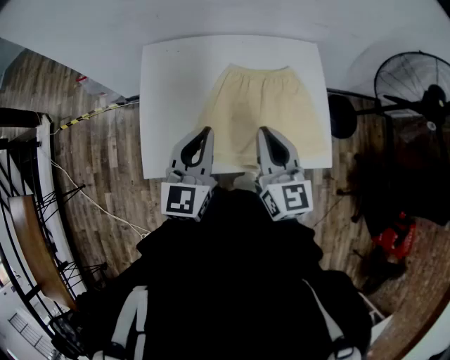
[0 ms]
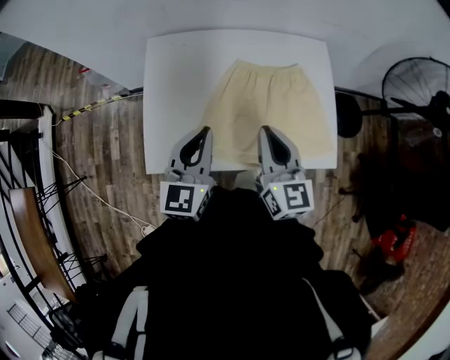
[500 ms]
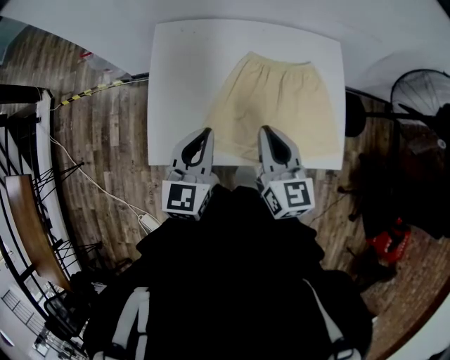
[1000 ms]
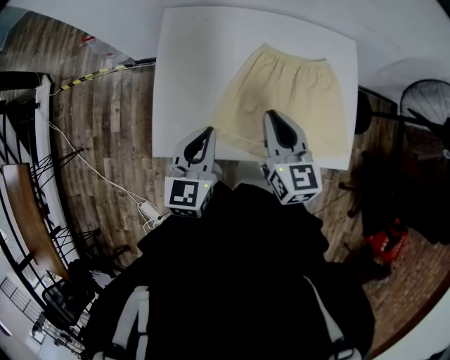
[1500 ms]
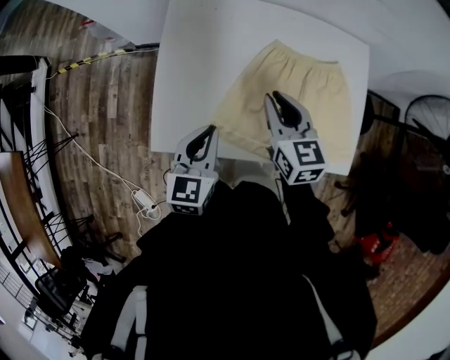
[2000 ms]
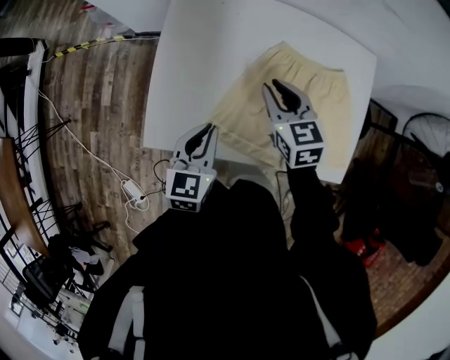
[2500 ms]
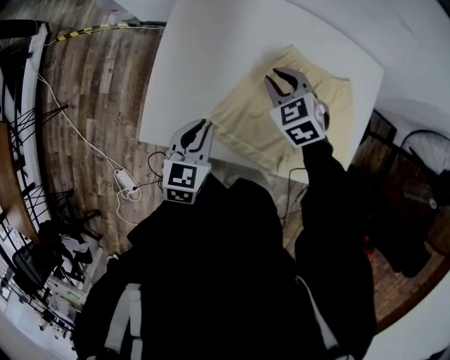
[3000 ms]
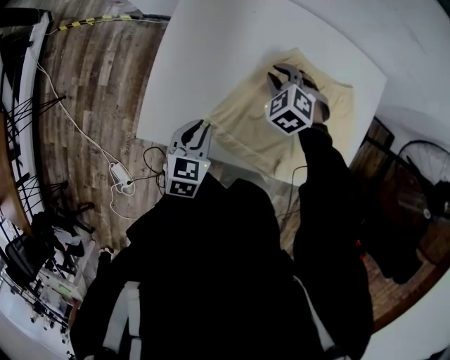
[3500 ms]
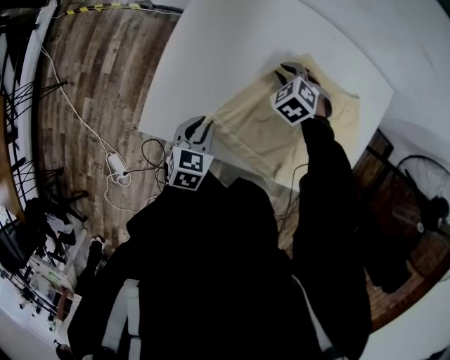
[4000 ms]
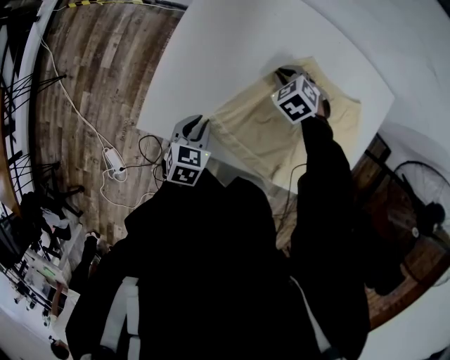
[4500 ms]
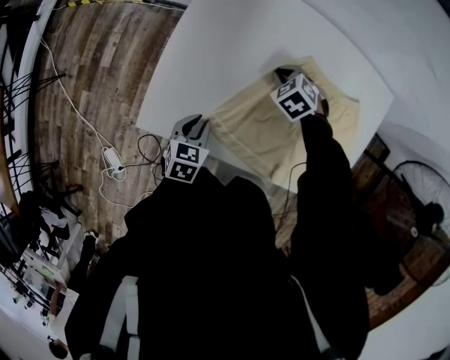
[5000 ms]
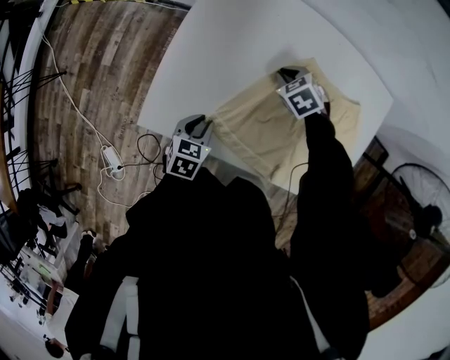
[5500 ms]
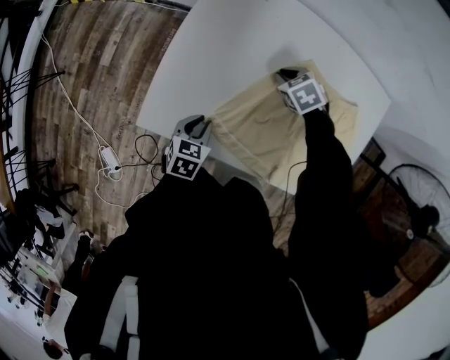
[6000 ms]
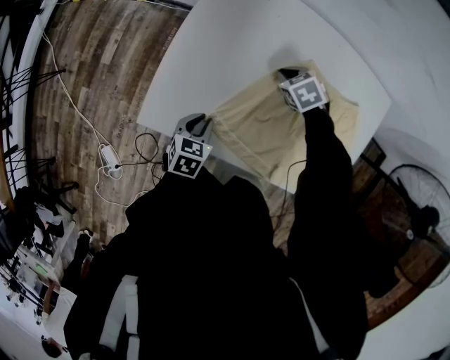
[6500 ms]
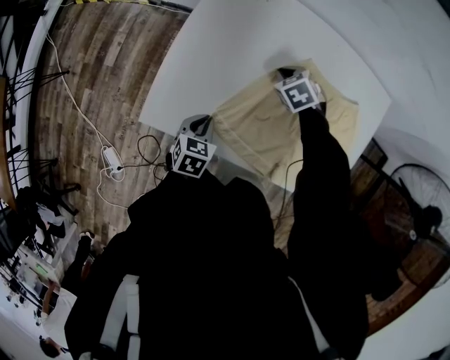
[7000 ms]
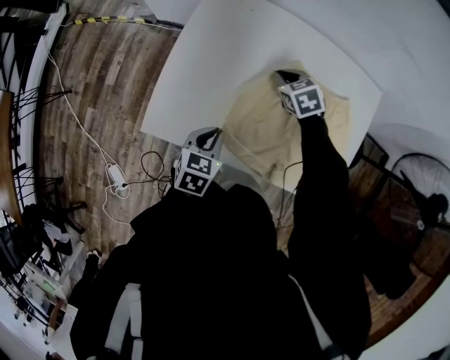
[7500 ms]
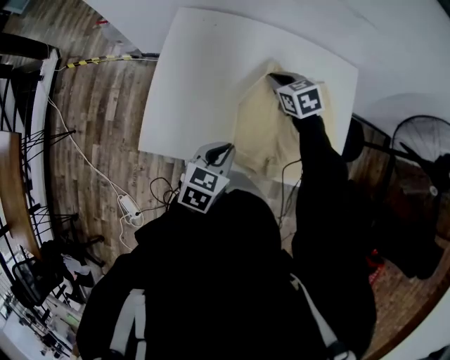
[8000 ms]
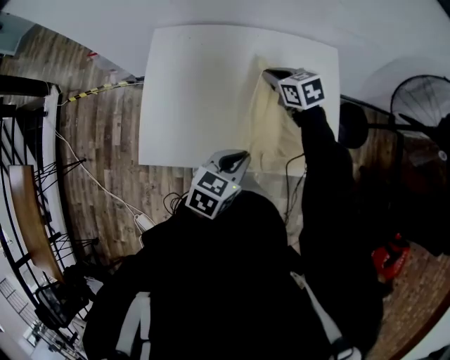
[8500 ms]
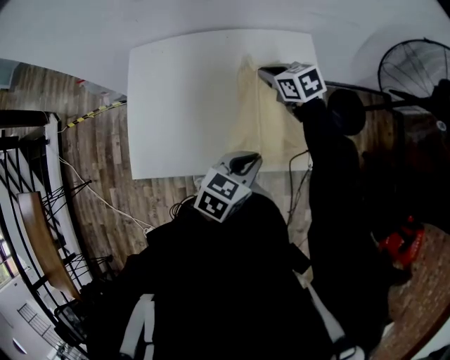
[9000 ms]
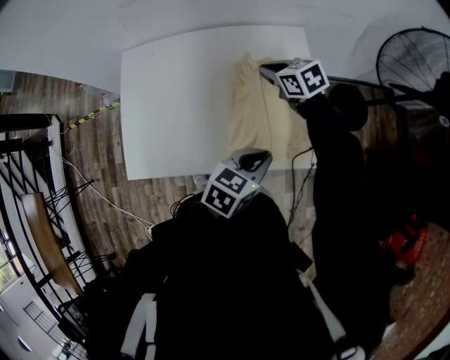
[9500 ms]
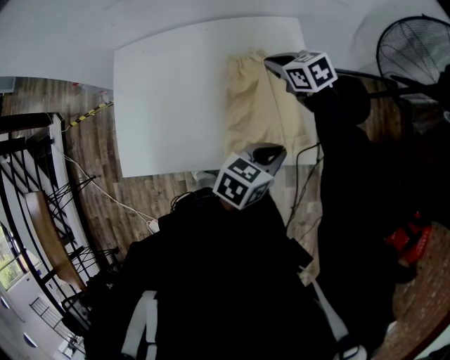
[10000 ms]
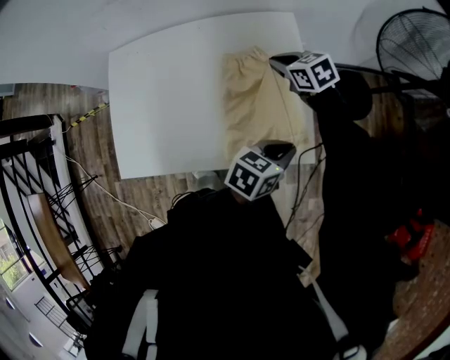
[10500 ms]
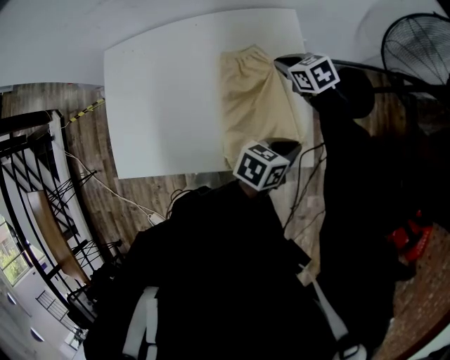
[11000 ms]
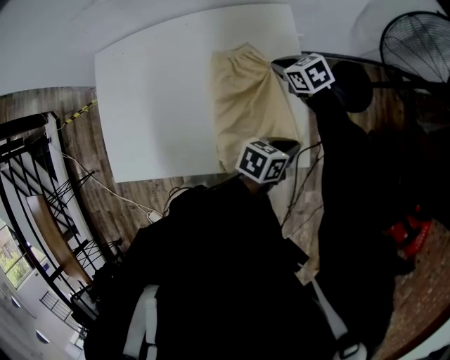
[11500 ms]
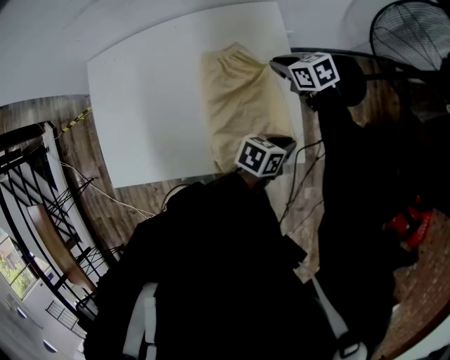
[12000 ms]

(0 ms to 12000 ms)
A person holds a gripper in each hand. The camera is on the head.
0 ms - 2000 ms: The right gripper heads downward, forward and to the left, covering some 15 cm, and rotates some 20 degrees. The left gripper shifts some 15 cm downward and to the left, and rotates some 20 degrees.
2000 ms - 4000 ms: The left gripper shifts approximately 15 cm downward, and turns by about 20 degrees; the right gripper shifts approximately 25 cm downward and forward, and points its fingers about 40 degrees further downward.
4000 ms - 6000 ms: The right gripper turns by about 20 degrees.
6000 ms - 8000 ms: The grippers both shift upward by approximately 15 cm. The right gripper turns by approximately 30 degrees.
8000 ms - 10000 ms: The grippers both shift to the right by roughly 30 cm. The left gripper swivels approximately 30 degrees.
10000 ms - 12000 ms: The left gripper ends up approximately 15 cm from where it was, and rotates roughly 20 degrees, while the right gripper moves approximately 15 cm.

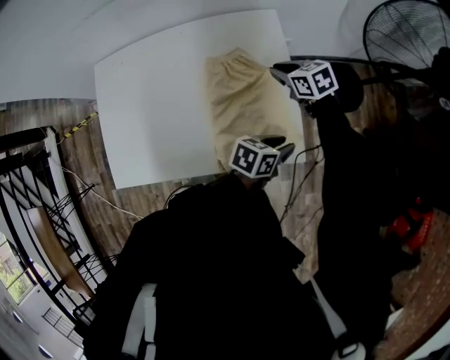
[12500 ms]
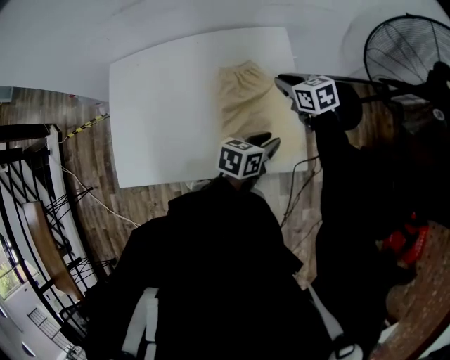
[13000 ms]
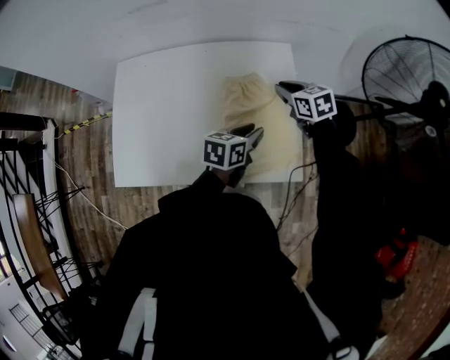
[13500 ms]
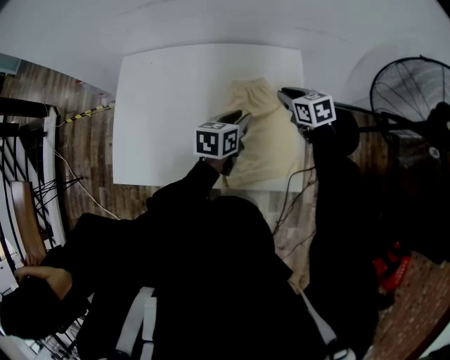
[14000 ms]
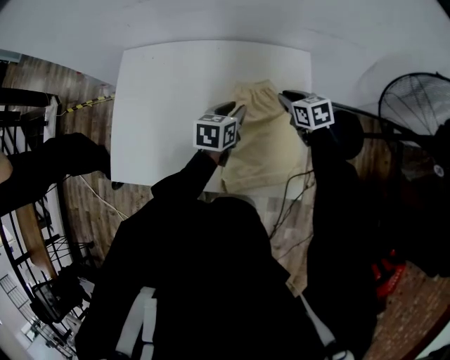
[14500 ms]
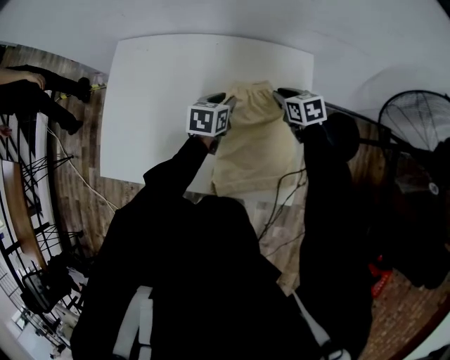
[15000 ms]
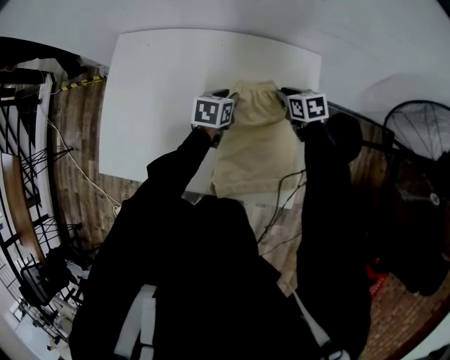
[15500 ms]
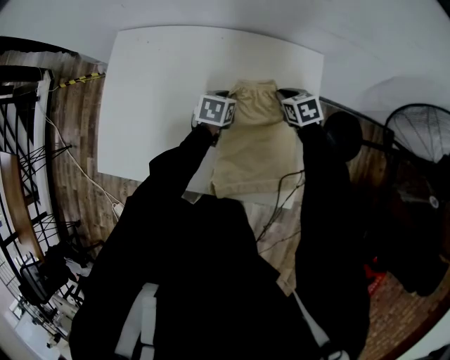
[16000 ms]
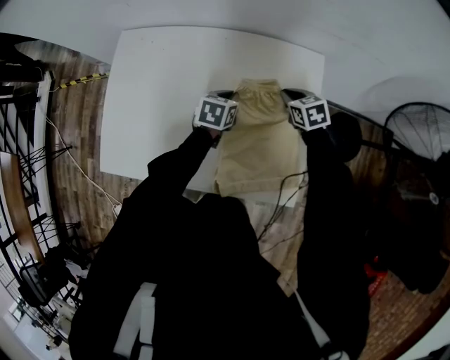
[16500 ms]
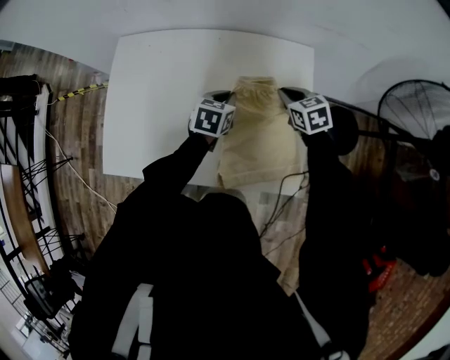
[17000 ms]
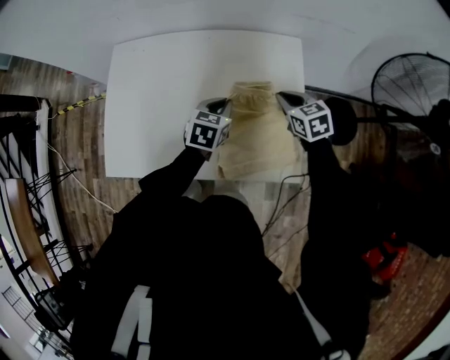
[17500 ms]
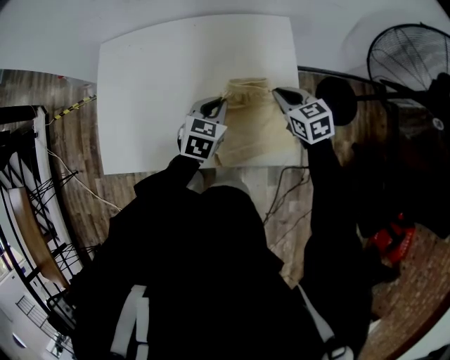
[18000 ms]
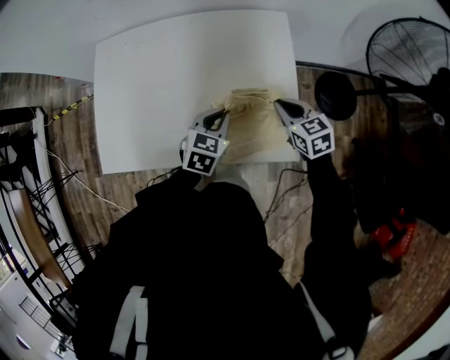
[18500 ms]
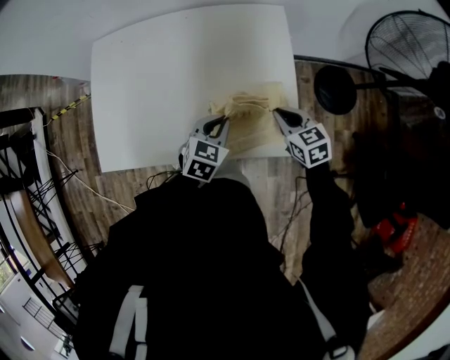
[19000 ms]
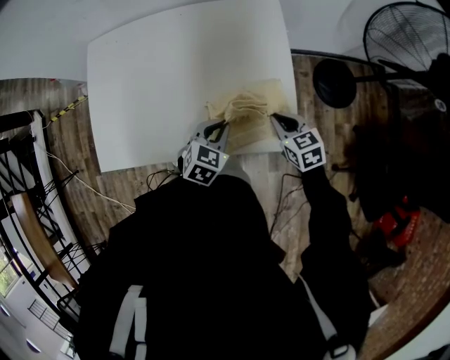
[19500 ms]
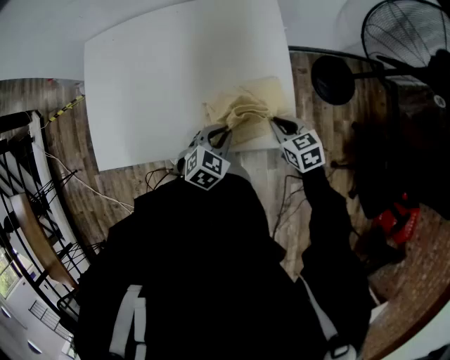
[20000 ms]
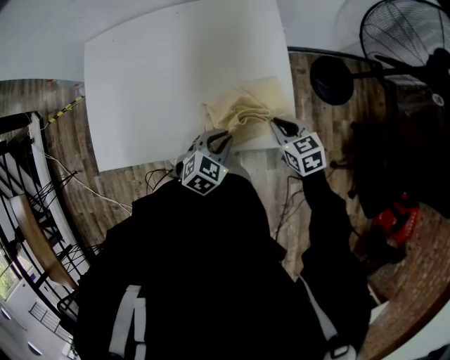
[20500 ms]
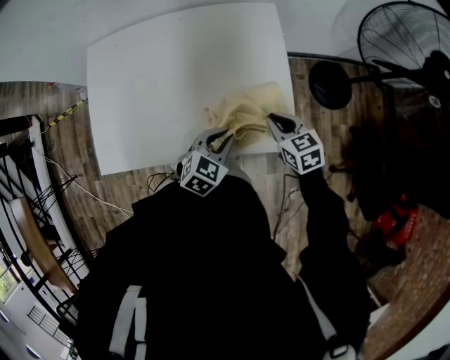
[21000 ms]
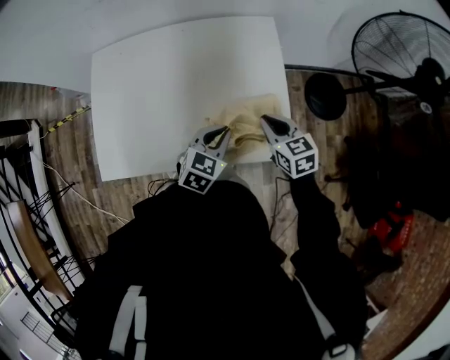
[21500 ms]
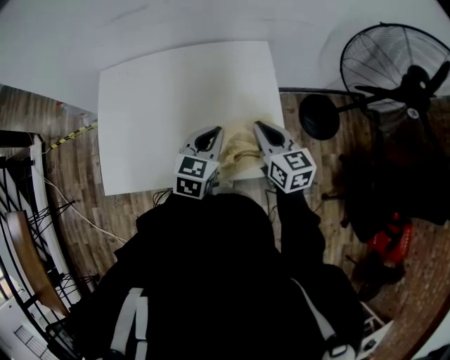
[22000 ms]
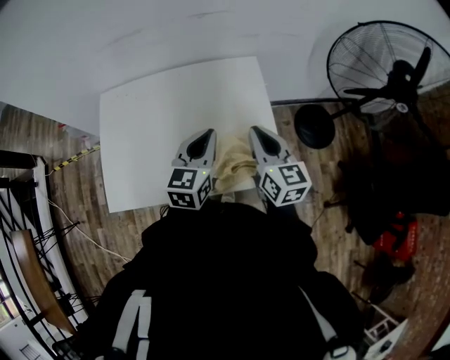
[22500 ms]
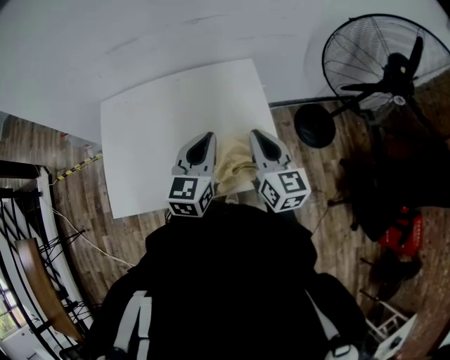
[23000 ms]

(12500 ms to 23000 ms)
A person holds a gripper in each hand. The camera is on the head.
12500 ms - 14500 ms: The left gripper ends up some 30 cm from where it was, and rotates some 40 degrees. The right gripper travels upward and back again, some 5 cm each way.
14500 ms - 16500 ms: The right gripper moves about 5 cm; the left gripper travels downward and forward by about 10 cm, and closes its fingers.
16500 ms - 19000 ms: The two grippers go some 25 cm backward. The left gripper changes its angle by roughly 30 degrees.
19000 ms - 21000 ms: The left gripper goes roughly 5 cm backward.
21000 ms - 23000 ms: Both grippers travel together upward, roughly 20 cm. The right gripper tips its fingers upward by about 30 degrees. Meanwhile the left gripper rotates some 40 degrees.

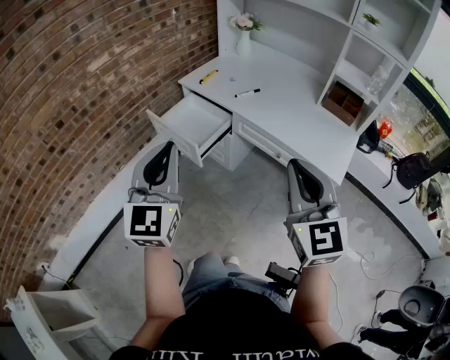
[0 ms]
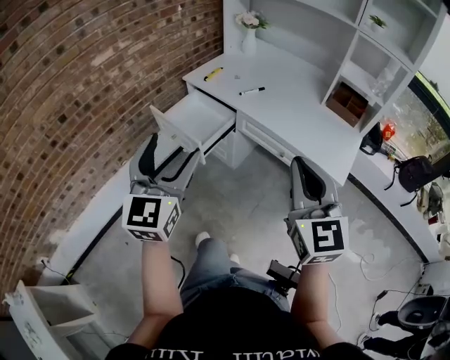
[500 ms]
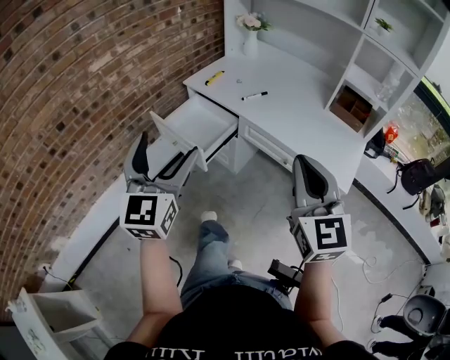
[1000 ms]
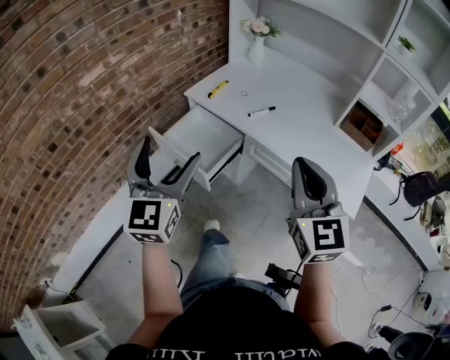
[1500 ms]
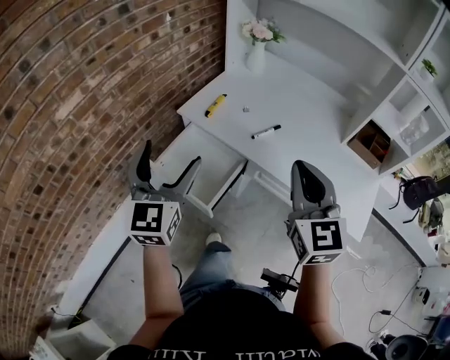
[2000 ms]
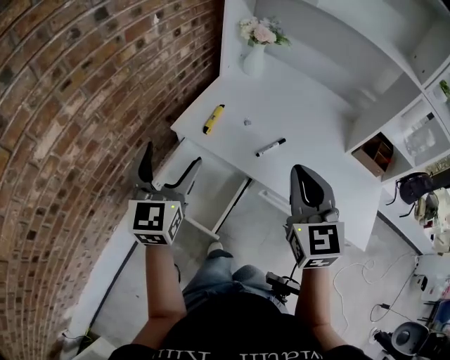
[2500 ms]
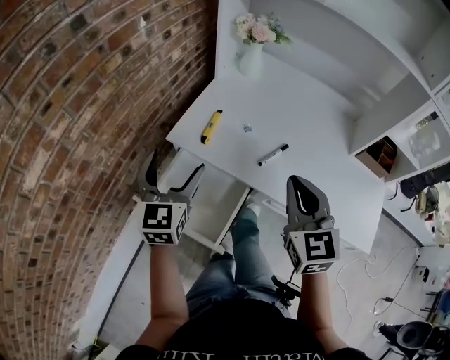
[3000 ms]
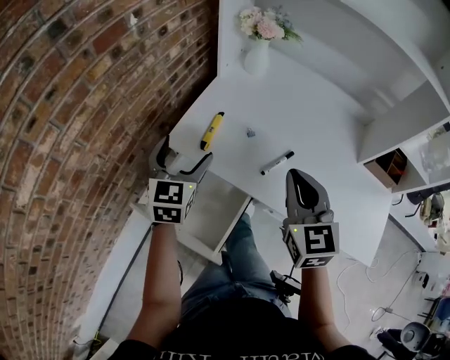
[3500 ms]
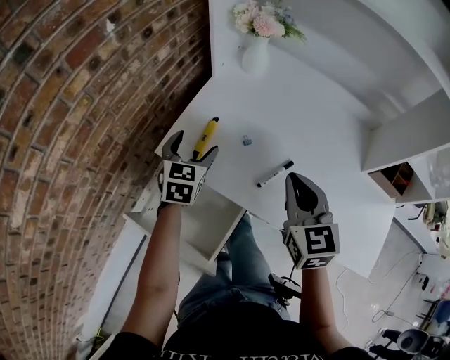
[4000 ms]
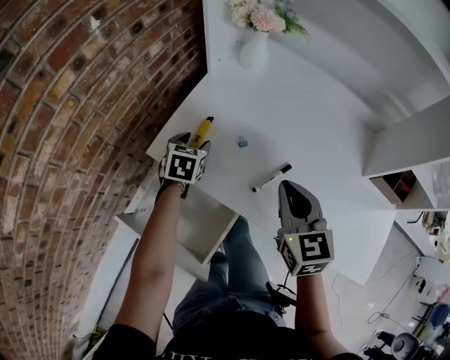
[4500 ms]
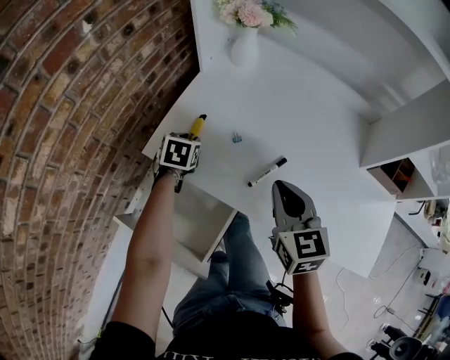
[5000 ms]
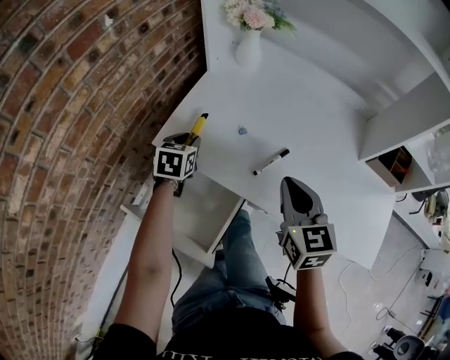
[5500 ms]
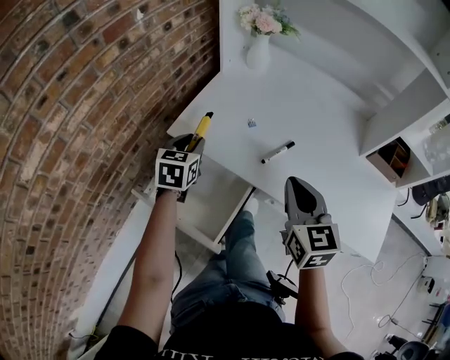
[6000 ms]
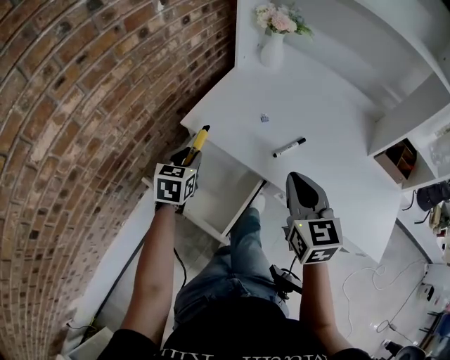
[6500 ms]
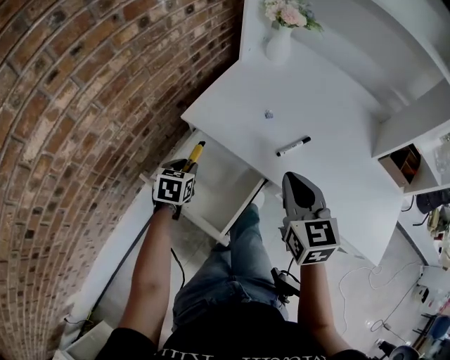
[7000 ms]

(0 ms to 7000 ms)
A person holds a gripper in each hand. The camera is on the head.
0 ms - 2000 ms: The two grippers go some 30 cm forward. The left gripper opens up.
2000 ms - 3500 ms: The two grippers go some 25 cm forward and downward.
3500 ms - 5000 ms: The right gripper shifts roughly 10 cm downward. Meanwhile the left gripper goes some 20 cm downward and forward, angles its fingers downward, by about 40 degrees, and closes its fingers.
5000 ms - 7000 ms: The left gripper is displaced backward and to the left by approximately 25 cm, while the right gripper is displaced backward and to the left by approximately 10 cm.
